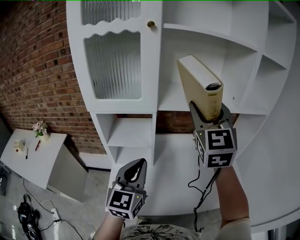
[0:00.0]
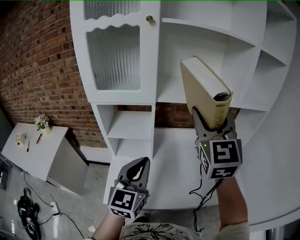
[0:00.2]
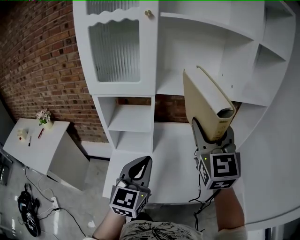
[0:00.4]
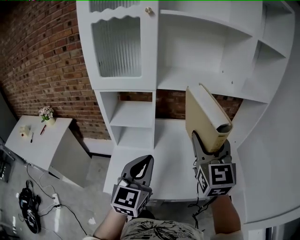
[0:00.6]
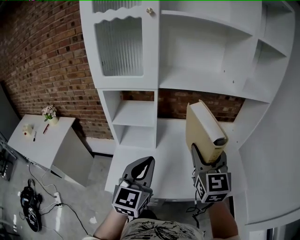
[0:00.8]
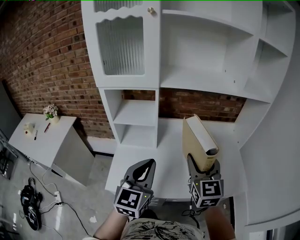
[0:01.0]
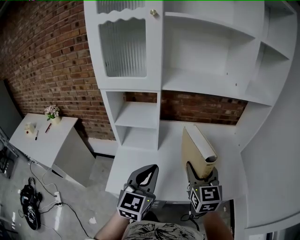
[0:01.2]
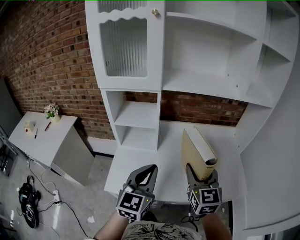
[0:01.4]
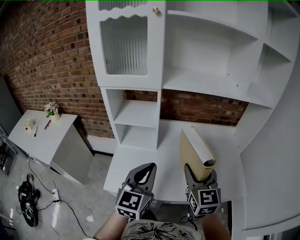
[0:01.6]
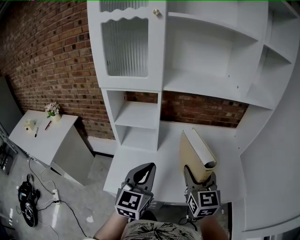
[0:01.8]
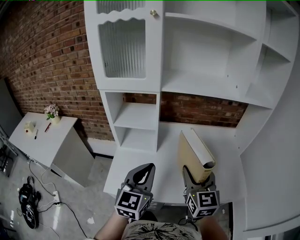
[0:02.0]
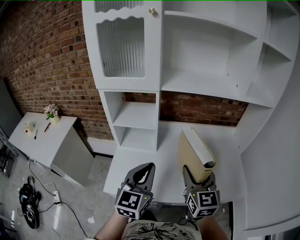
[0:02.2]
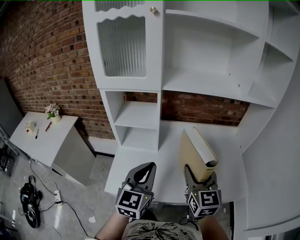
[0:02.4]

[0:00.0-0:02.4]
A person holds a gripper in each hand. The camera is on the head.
0:00.0 to 0:01.2: The left gripper goes approximately 15 cm backward, downward and to the right. The right gripper goes roughly 30 cm downward and backward, and swivels about 20 degrees.
0:01.2 to 0:02.4: There are only small adjustments of the grippers.

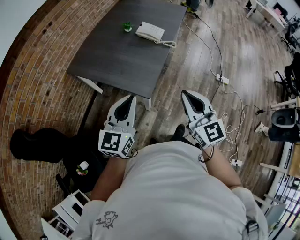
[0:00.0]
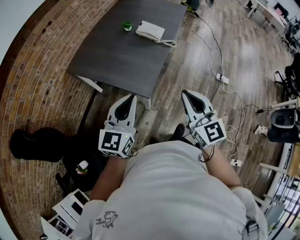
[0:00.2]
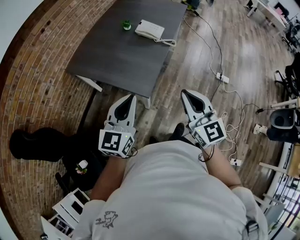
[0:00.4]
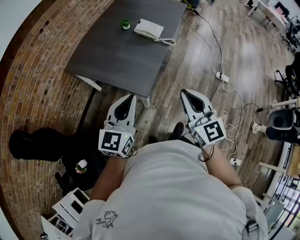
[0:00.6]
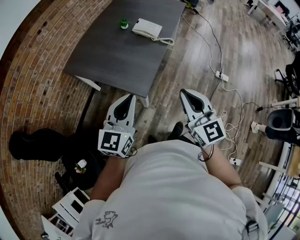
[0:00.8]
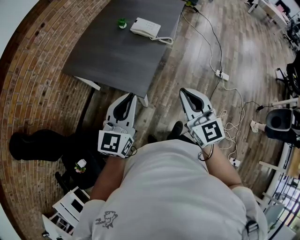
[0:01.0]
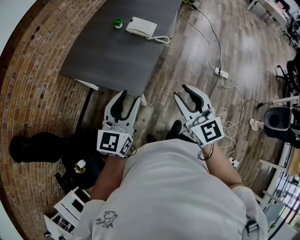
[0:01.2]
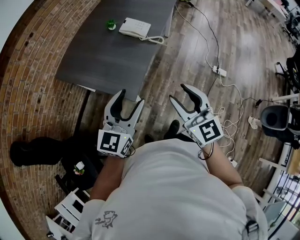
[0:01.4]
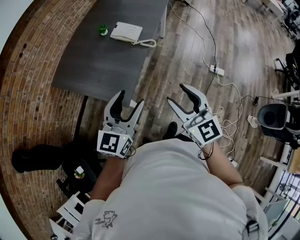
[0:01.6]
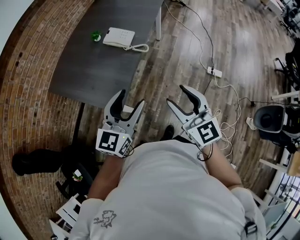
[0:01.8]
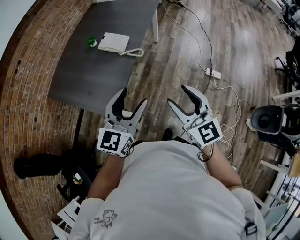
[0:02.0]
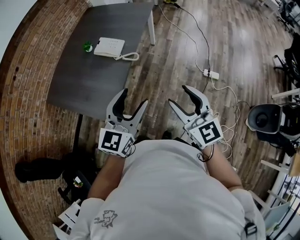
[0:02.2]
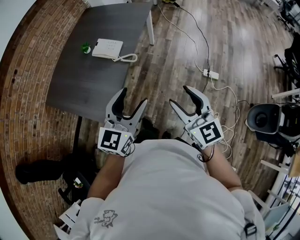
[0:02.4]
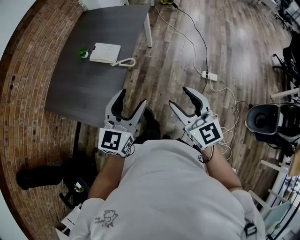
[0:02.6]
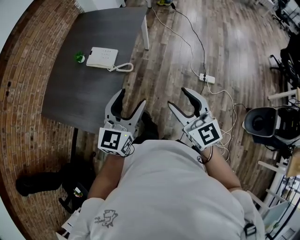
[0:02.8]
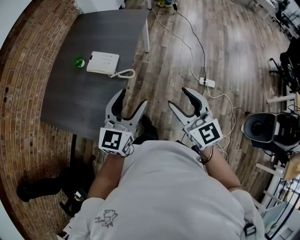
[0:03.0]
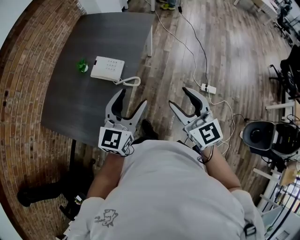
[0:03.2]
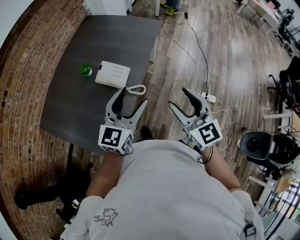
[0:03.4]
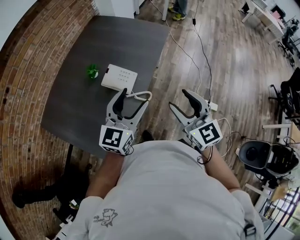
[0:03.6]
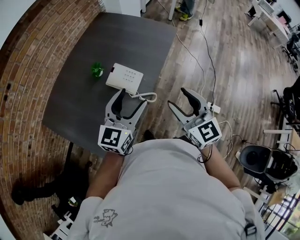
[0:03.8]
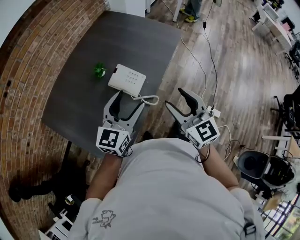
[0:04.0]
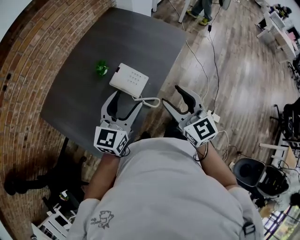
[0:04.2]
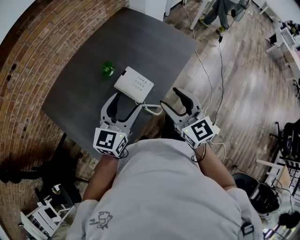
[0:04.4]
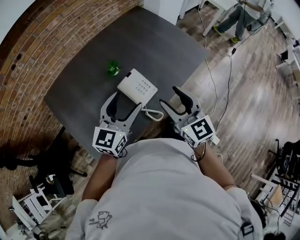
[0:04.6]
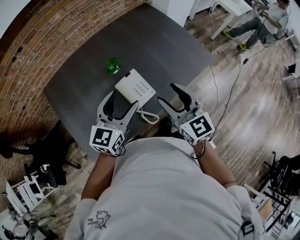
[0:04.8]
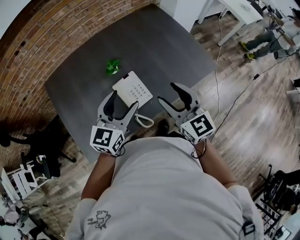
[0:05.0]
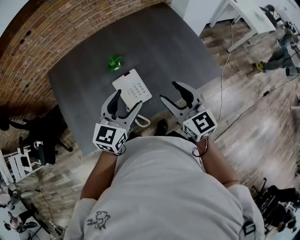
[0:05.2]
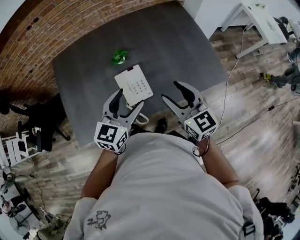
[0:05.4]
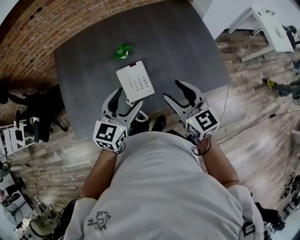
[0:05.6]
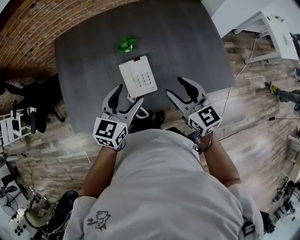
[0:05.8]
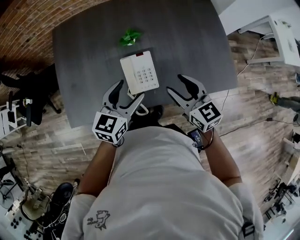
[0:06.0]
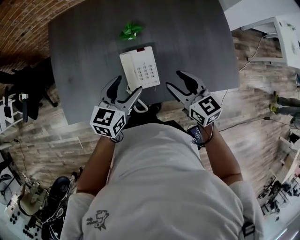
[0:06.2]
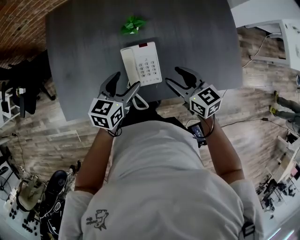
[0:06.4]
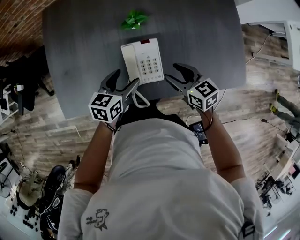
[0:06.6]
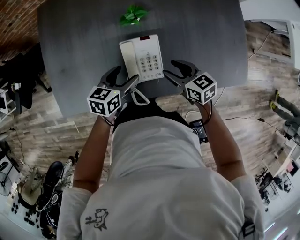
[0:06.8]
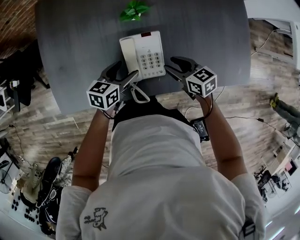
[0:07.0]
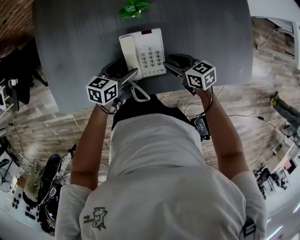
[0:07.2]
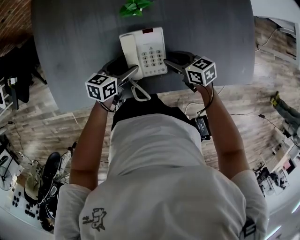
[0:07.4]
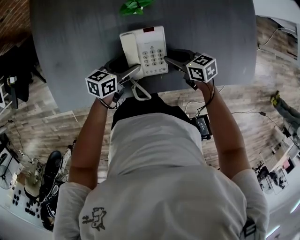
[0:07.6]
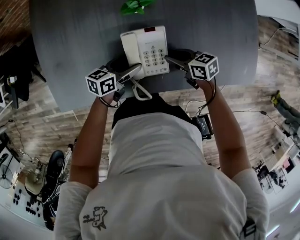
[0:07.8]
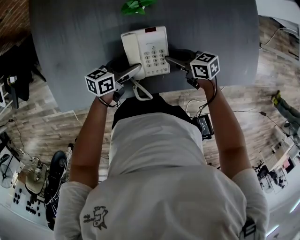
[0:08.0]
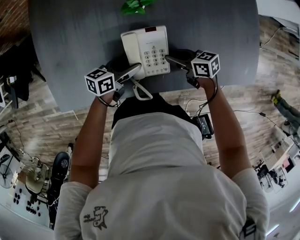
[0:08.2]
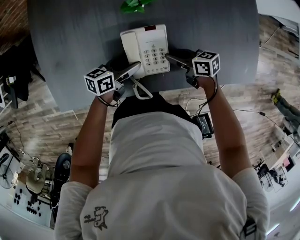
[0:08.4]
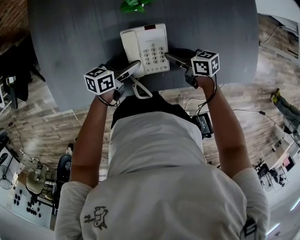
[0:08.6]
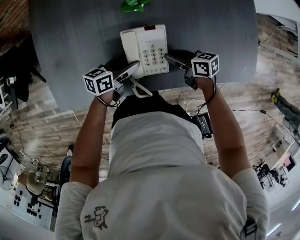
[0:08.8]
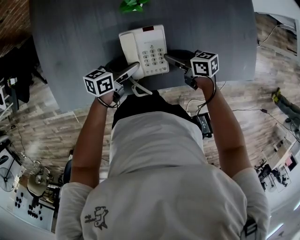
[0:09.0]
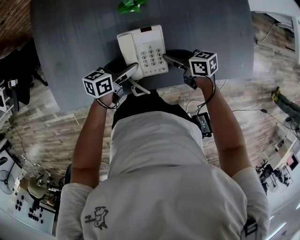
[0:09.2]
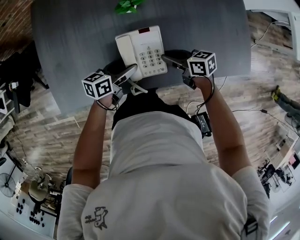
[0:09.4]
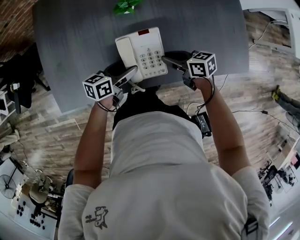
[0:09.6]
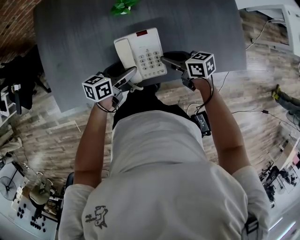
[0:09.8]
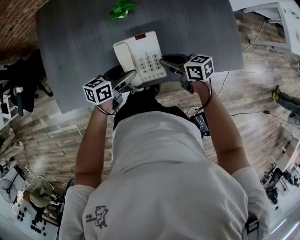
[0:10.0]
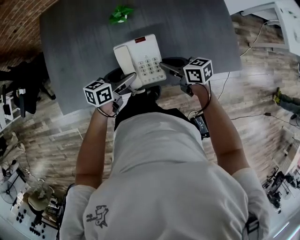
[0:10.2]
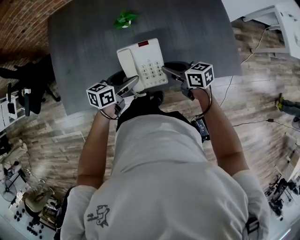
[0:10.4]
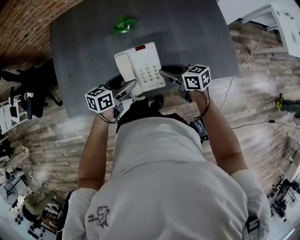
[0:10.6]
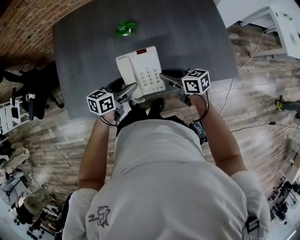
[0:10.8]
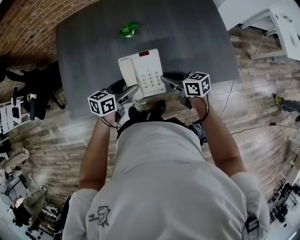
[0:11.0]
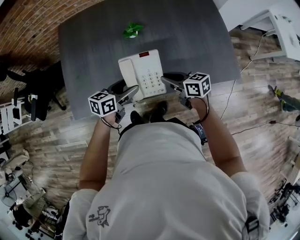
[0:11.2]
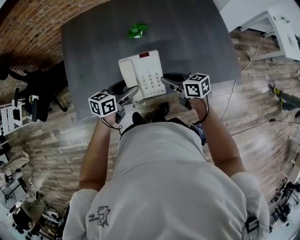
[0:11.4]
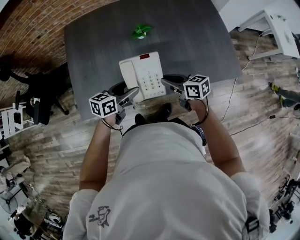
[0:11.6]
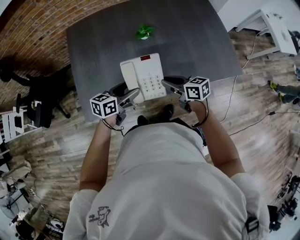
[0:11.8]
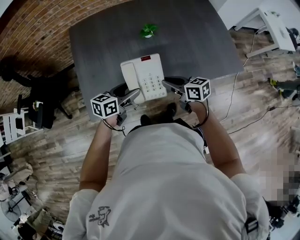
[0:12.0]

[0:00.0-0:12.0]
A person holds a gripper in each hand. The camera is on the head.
0:00.0 to 0:01.6: Both grippers travel together to the right and forward, some 15 cm. The right gripper opens up, while the left gripper opens.
0:01.6 to 0:03.0: Both grippers travel together forward and to the right, roughly 25 cm.
0:03.0 to 0:04.4: Both grippers move forward and to the left, some 30 cm. The left gripper rotates some 20 degrees, while the right gripper turns by approximately 20 degrees.
0:04.4 to 0:06.0: The left gripper goes some 10 cm downward, and turns by approximately 40 degrees. The right gripper ends up roughly 25 cm from where it was, and changes its angle by approximately 50 degrees.
0:06.0 to 0:07.6: Both grippers move downward, about 25 cm. The right gripper rotates approximately 40 degrees, and closes. Meanwhile the left gripper turns by some 30 degrees.
0:07.6 to 0:09.0: The grippers make only small movements.
0:09.0 to 0:10.4: Both grippers travel together upward, about 10 cm.
0:10.4 to 0:12.0: The right gripper is displaced to the left and backward by about 15 cm. Meanwhile the left gripper moves to the left, about 15 cm.

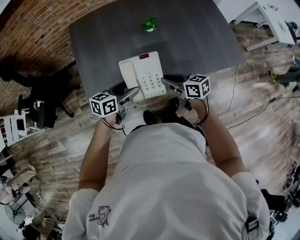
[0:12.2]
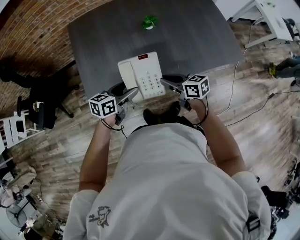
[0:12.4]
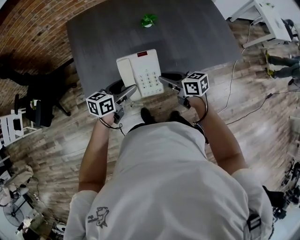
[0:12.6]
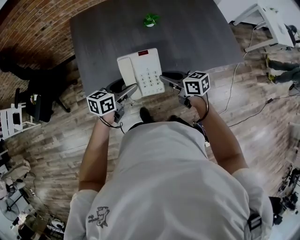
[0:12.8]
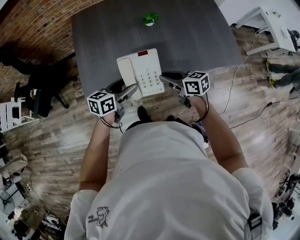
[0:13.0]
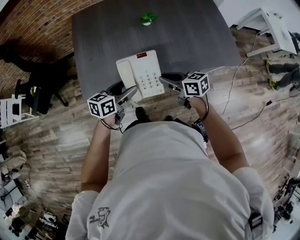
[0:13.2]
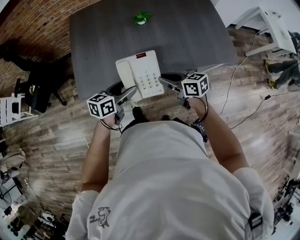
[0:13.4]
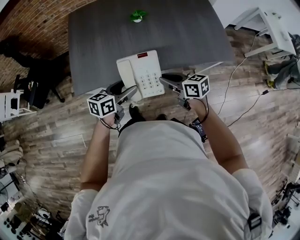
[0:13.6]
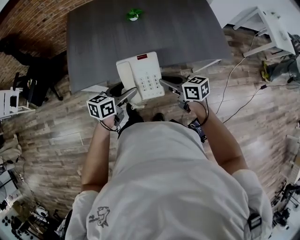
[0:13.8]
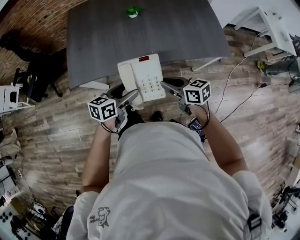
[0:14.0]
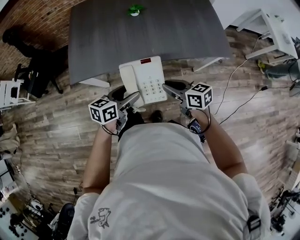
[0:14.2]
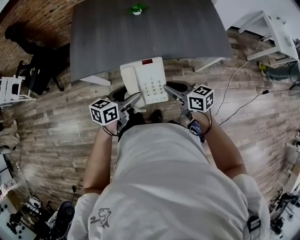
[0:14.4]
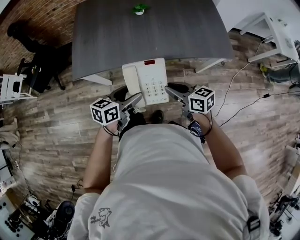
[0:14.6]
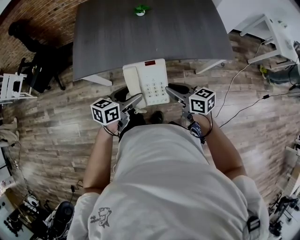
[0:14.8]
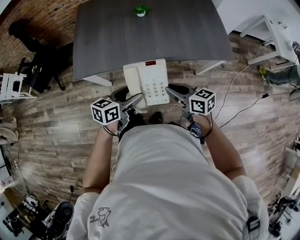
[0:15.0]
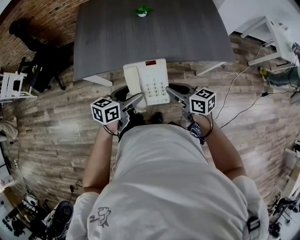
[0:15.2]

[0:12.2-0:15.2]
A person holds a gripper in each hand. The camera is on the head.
0:12.2 to 0:13.8: Both grippers move backward and to the right, about 20 cm.
0:13.8 to 0:15.2: The grippers make only small movements.

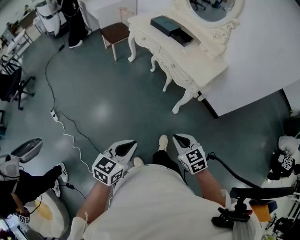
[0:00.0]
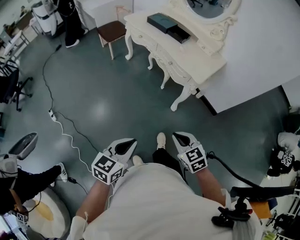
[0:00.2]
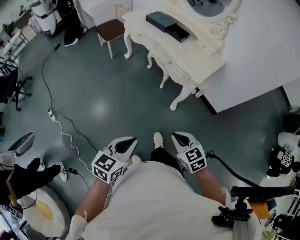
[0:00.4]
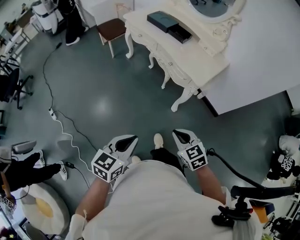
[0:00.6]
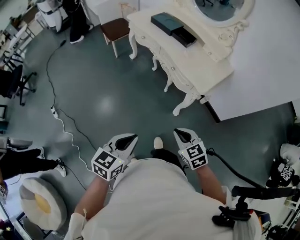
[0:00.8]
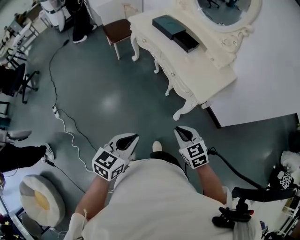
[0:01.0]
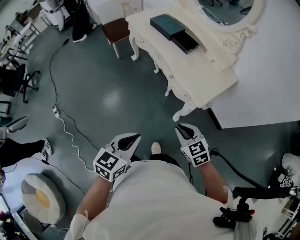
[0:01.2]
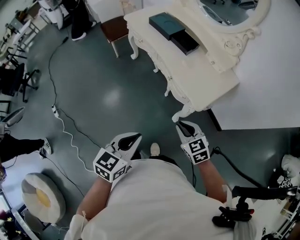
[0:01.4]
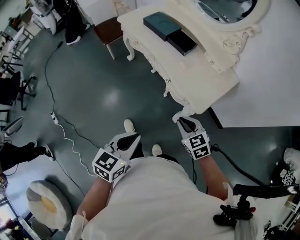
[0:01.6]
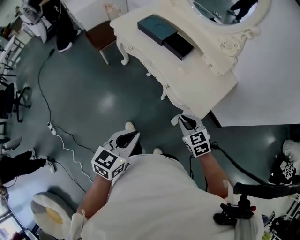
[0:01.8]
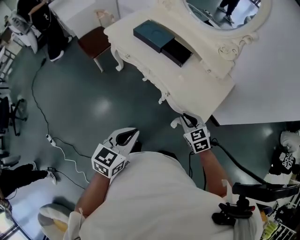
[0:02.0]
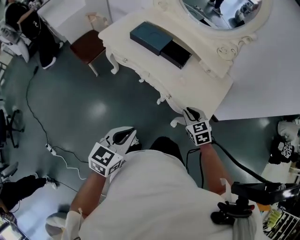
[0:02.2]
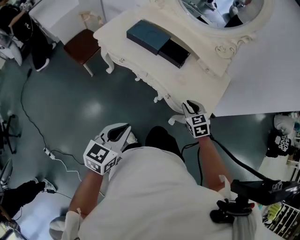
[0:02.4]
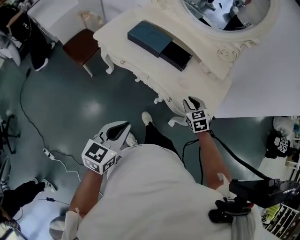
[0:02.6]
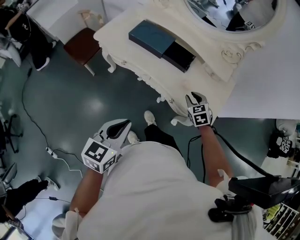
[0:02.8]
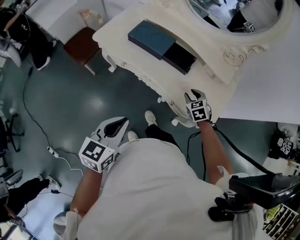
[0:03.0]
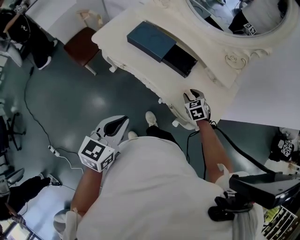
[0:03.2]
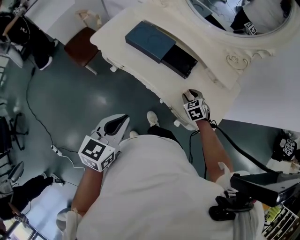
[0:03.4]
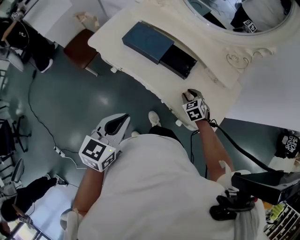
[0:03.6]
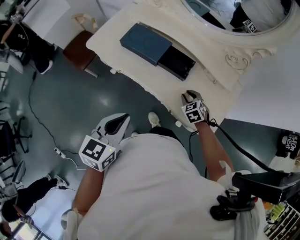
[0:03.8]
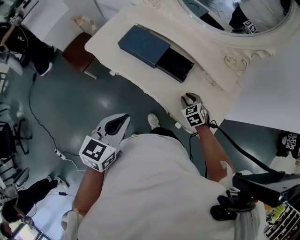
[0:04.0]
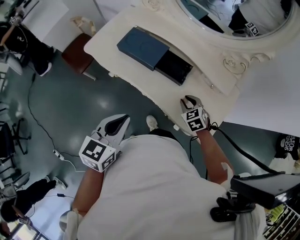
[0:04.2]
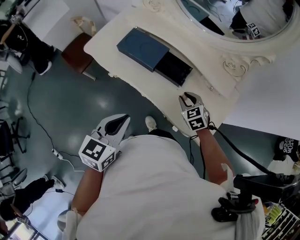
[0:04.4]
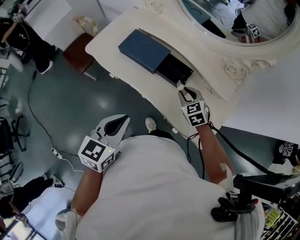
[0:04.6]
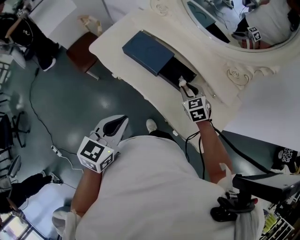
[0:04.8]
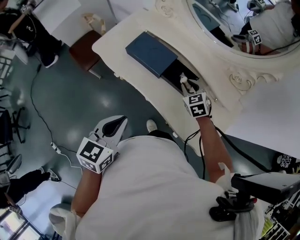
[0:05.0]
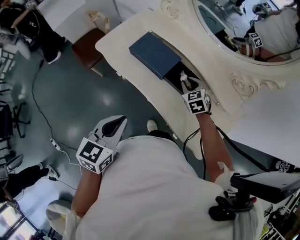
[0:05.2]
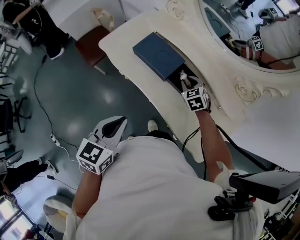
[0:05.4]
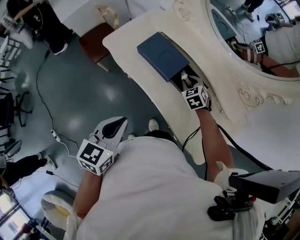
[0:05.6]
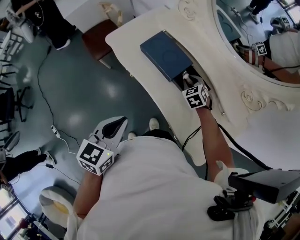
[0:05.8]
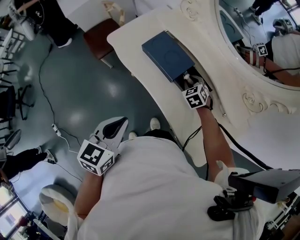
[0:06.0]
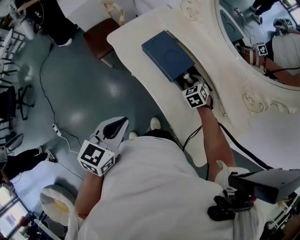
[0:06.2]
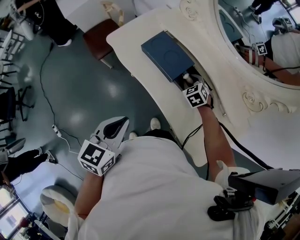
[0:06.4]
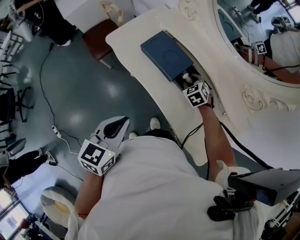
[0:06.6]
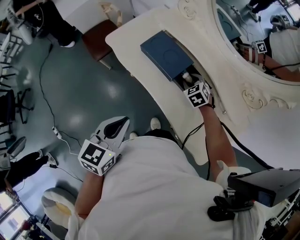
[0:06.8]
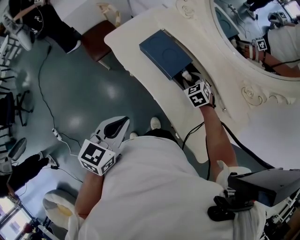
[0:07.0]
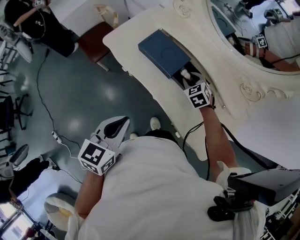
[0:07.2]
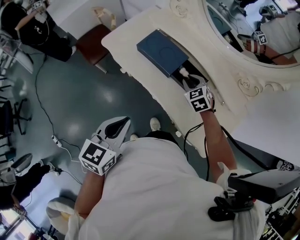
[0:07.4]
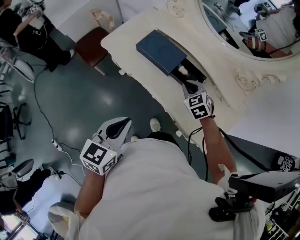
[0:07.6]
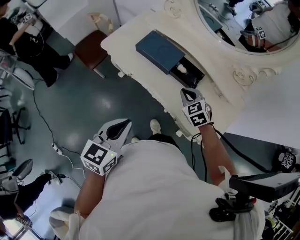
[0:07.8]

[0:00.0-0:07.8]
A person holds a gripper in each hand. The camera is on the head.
0:00.0 to 0:01.6: The two grippers go roughly 35 cm forward.
0:01.6 to 0:03.2: The right gripper ends up about 40 cm from where it was, turns by some 30 degrees, and opens its fingers; the left gripper moves roughly 40 cm.
0:03.2 to 0:04.6: The left gripper moves forward, some 10 cm, while the right gripper travels forward and upward by approximately 10 cm.
0:04.6 to 0:06.2: The right gripper heads forward, to the left and downward, covering approximately 20 cm.
0:06.2 to 0:07.8: The right gripper travels backward and upward by about 20 cm, and closes its fingers; the left gripper goes some 10 cm backward.
